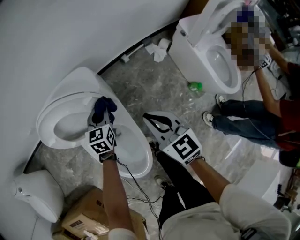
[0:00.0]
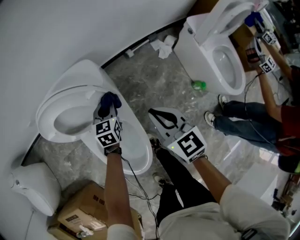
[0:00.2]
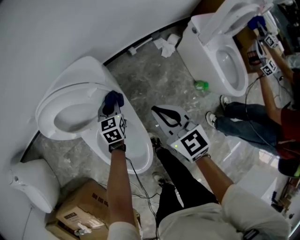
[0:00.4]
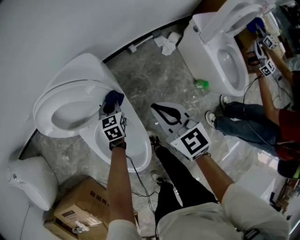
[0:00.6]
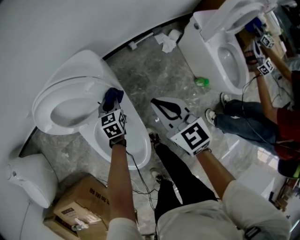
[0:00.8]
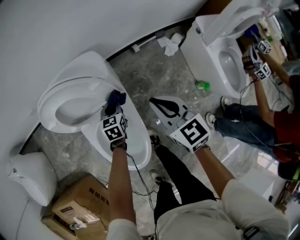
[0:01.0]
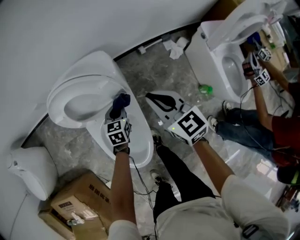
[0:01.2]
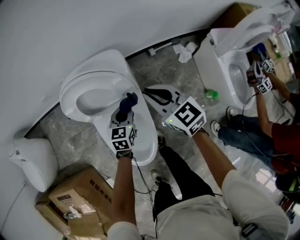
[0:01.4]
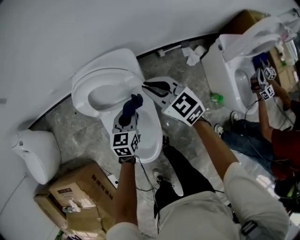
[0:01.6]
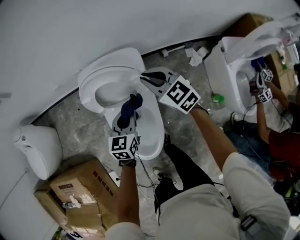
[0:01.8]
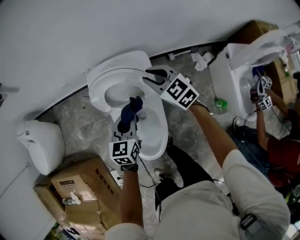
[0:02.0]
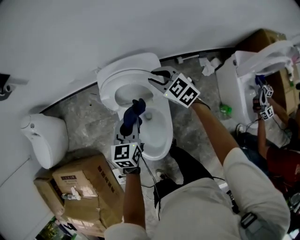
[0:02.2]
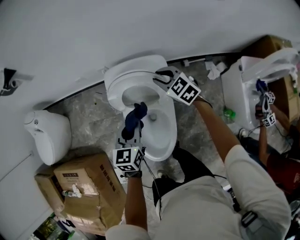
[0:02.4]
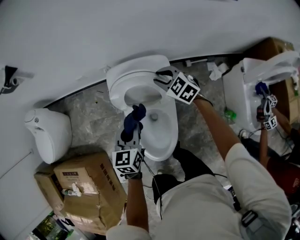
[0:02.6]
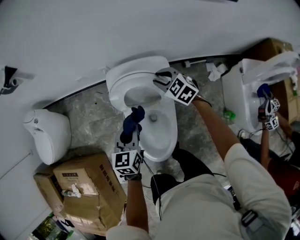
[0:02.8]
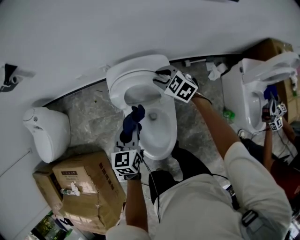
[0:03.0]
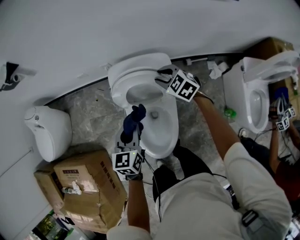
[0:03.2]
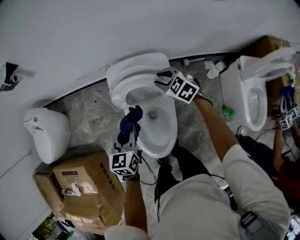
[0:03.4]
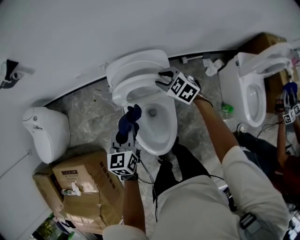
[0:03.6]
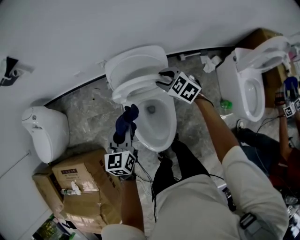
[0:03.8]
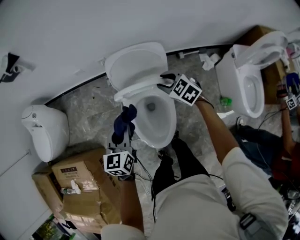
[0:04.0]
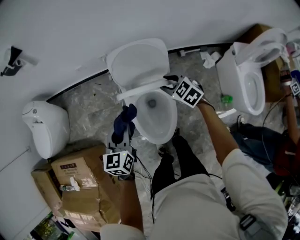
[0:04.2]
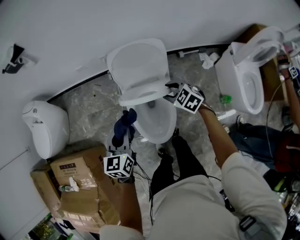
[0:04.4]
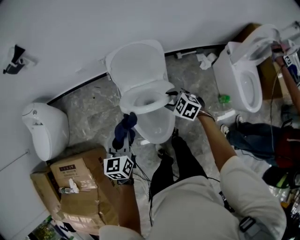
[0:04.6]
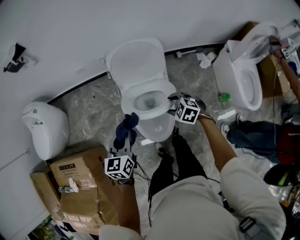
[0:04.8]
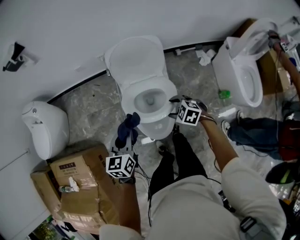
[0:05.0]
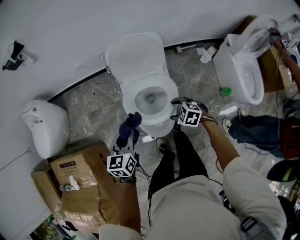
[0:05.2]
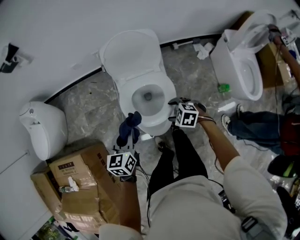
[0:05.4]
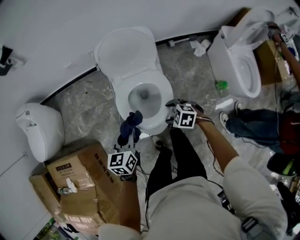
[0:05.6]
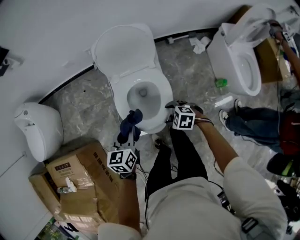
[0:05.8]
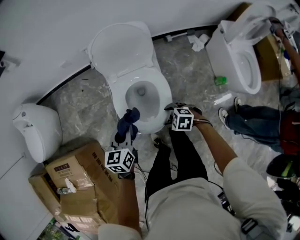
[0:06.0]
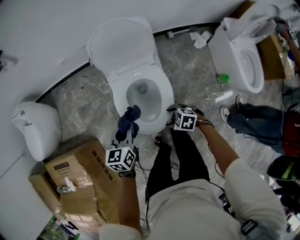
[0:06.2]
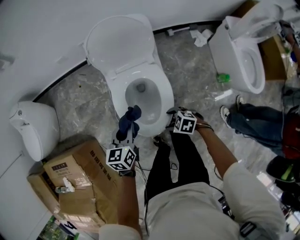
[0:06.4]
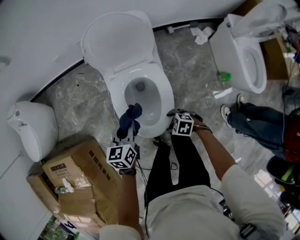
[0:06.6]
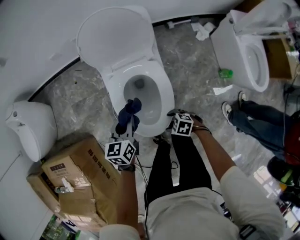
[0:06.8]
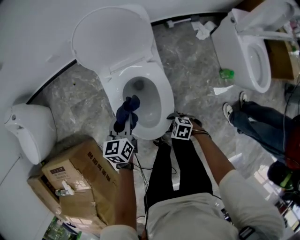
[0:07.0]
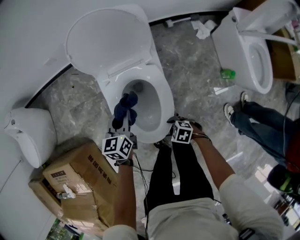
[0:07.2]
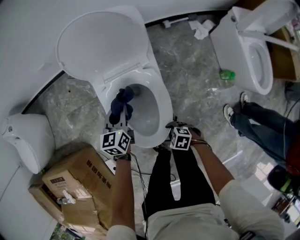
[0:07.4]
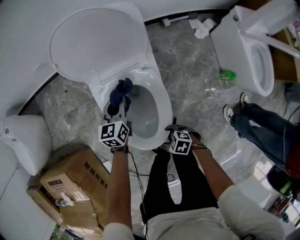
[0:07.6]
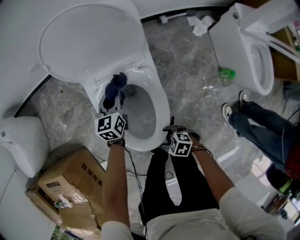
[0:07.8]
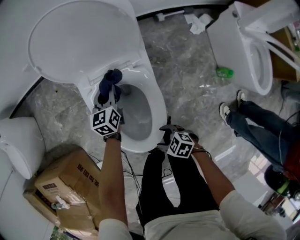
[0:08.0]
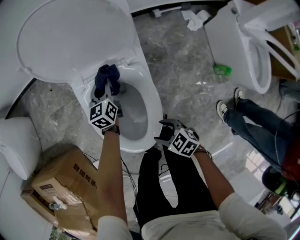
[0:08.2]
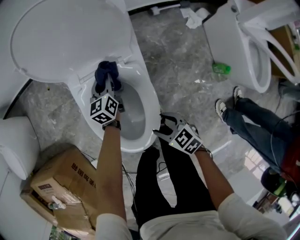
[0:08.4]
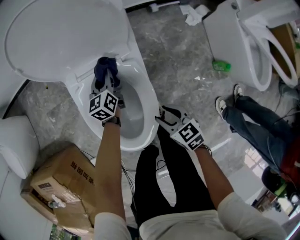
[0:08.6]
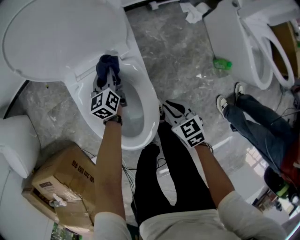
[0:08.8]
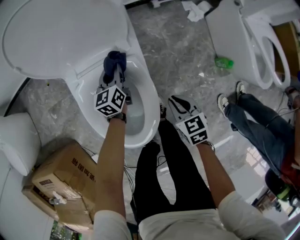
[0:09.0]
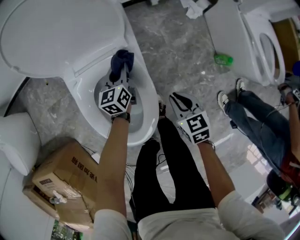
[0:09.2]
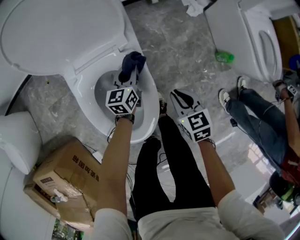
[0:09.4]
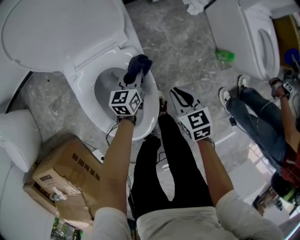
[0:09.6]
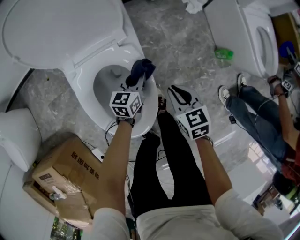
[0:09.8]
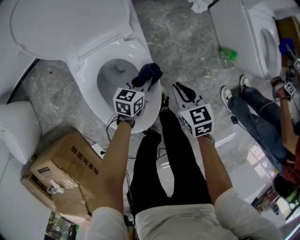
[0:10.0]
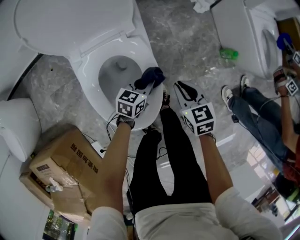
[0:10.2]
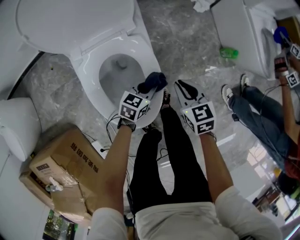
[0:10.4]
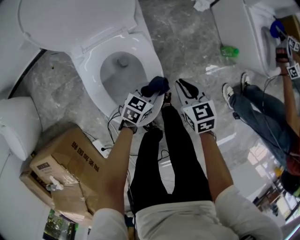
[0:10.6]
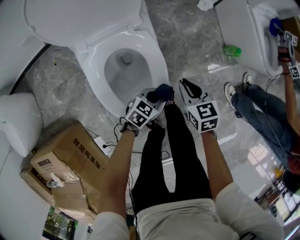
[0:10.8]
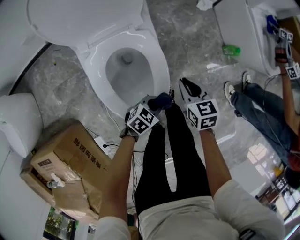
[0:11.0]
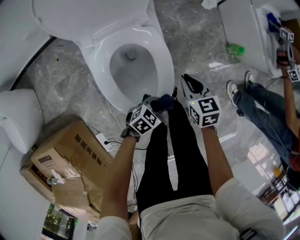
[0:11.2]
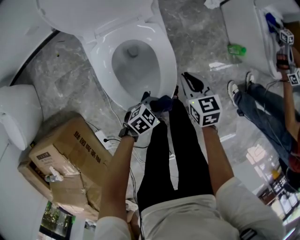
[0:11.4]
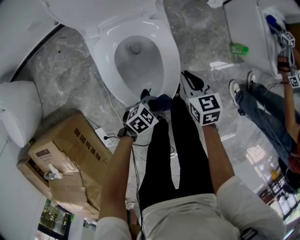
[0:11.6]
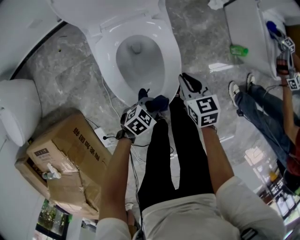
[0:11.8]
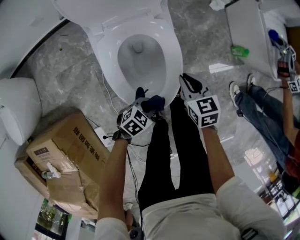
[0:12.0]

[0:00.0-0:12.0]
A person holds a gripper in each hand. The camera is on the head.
0:00.0 to 0:01.6: The left gripper moves backward and upward, approximately 10 cm; the right gripper moves forward and to the left, some 15 cm, and turns by roughly 30 degrees.
0:01.6 to 0:03.0: The right gripper shifts about 10 cm forward and to the left, rotates approximately 30 degrees, and opens up, while the left gripper shifts some 20 cm upward and to the left.
0:03.0 to 0:04.4: The left gripper shifts some 15 cm backward and to the left, while the right gripper shifts some 20 cm backward.
0:04.4 to 0:06.0: The left gripper heads downward and backward, covering approximately 10 cm. Meanwhile the right gripper shifts roughly 25 cm backward, downward and to the left, turns by about 30 degrees, and opens up.
0:06.0 to 0:07.6: The left gripper moves approximately 25 cm. Meanwhile the right gripper is displaced downward by about 15 cm.
0:07.6 to 0:09.0: The right gripper ends up roughly 20 cm from where it was, rotates some 50 degrees, and closes up. Meanwhile the left gripper changes place by roughly 15 cm.
0:09.0 to 0:10.4: The left gripper changes place by roughly 25 cm, and rotates roughly 50 degrees.
0:10.4 to 0:12.0: The right gripper shifts some 5 cm backward, while the left gripper moves backward, about 20 cm, and rotates approximately 30 degrees.

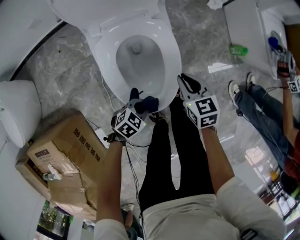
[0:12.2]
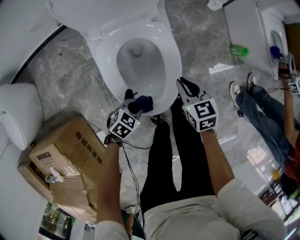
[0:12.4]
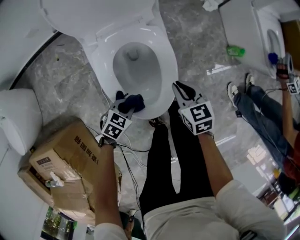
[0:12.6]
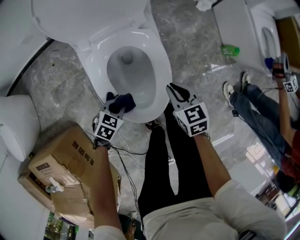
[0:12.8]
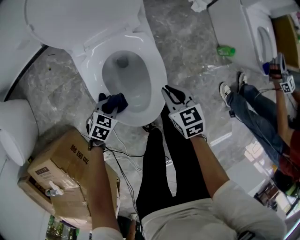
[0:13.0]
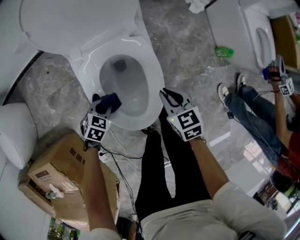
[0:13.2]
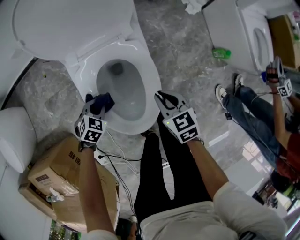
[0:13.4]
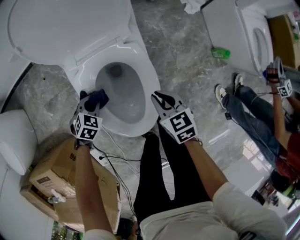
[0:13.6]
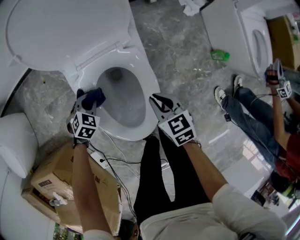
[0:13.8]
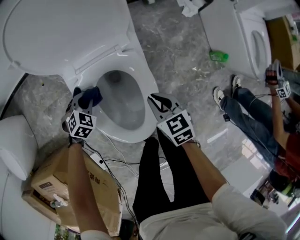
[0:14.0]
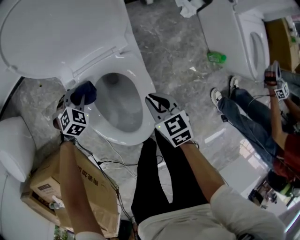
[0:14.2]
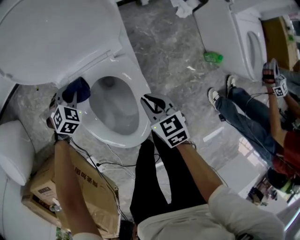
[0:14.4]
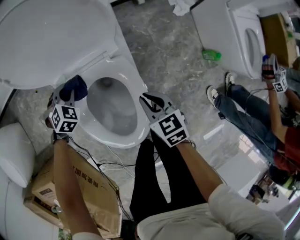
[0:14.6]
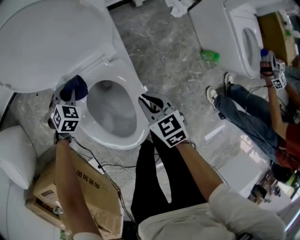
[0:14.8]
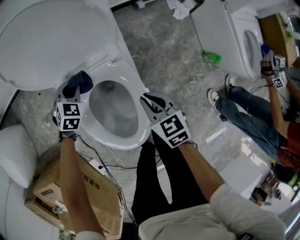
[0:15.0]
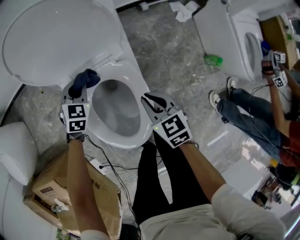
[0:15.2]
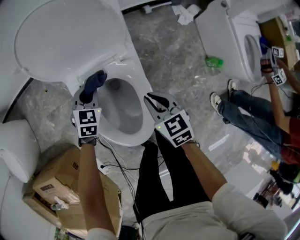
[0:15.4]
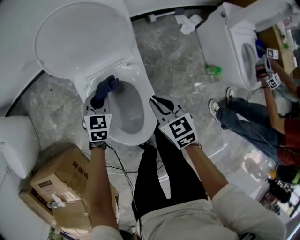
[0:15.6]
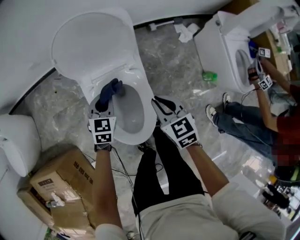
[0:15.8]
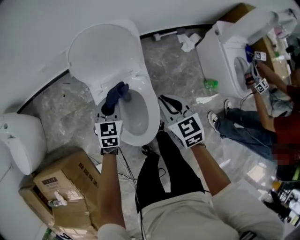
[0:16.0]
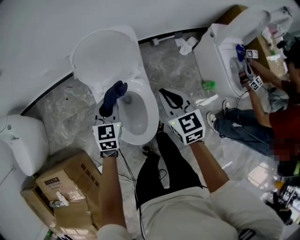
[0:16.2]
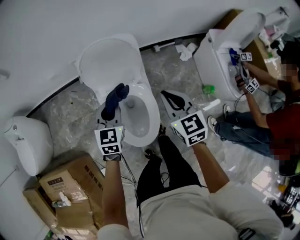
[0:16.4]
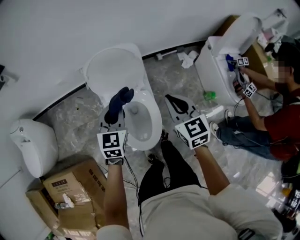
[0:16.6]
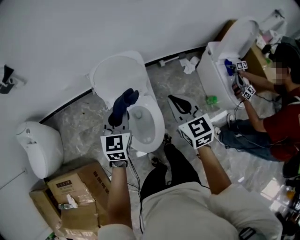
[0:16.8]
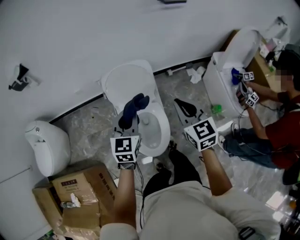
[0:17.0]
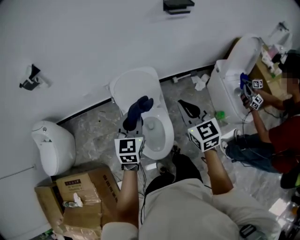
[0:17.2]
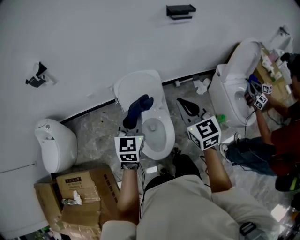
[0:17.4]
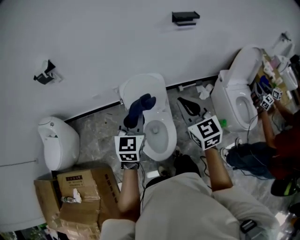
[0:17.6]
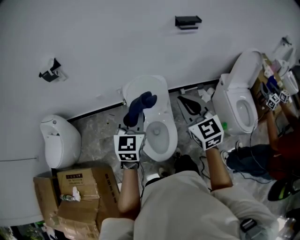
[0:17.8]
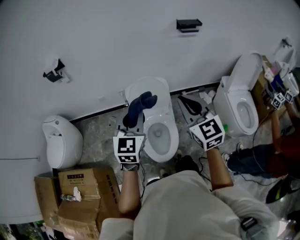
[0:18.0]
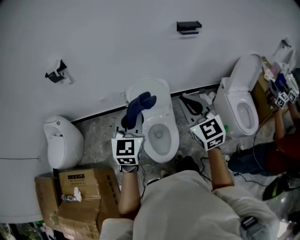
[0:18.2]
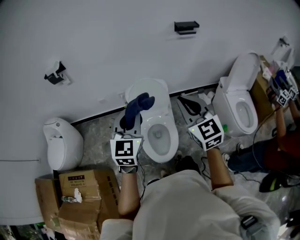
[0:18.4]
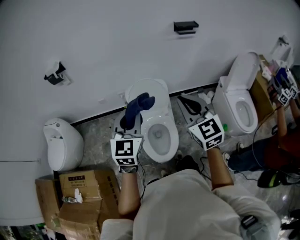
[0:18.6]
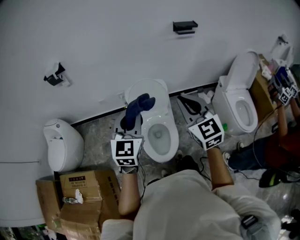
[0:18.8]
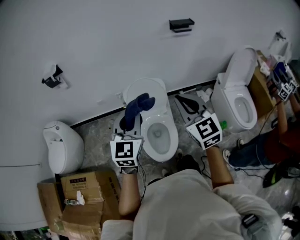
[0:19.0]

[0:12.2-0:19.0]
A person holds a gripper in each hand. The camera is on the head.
0:12.2 to 0:13.6: The left gripper heads to the left and forward, covering approximately 25 cm, and swivels approximately 30 degrees.
0:13.6 to 0:15.0: The right gripper shifts some 5 cm forward. The left gripper moves forward, roughly 15 cm.
0:15.0 to 0:16.2: Both grippers travel together upward, approximately 25 cm. The left gripper rotates approximately 40 degrees.
0:16.2 to 0:17.6: Both grippers move upward, some 30 cm. The right gripper turns by approximately 20 degrees.
0:17.6 to 0:19.0: The left gripper travels upward and backward by roughly 10 cm; the right gripper is displaced upward by about 5 cm.

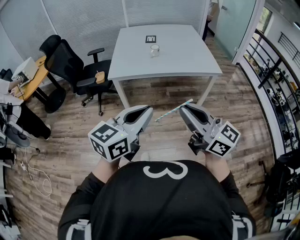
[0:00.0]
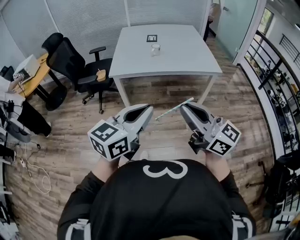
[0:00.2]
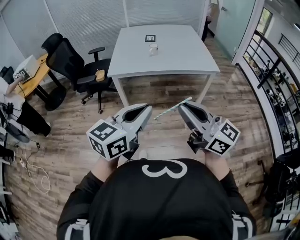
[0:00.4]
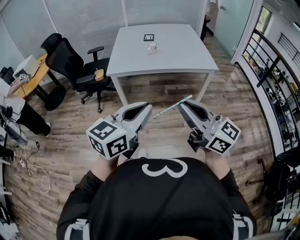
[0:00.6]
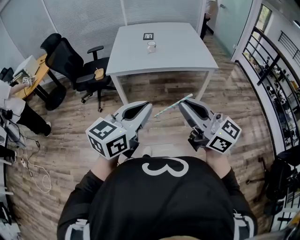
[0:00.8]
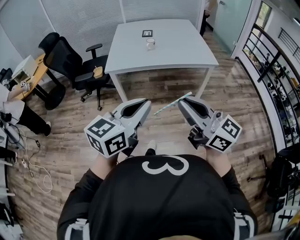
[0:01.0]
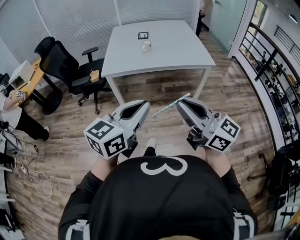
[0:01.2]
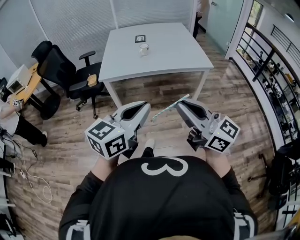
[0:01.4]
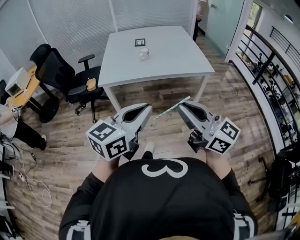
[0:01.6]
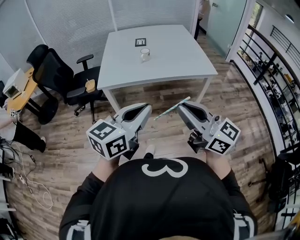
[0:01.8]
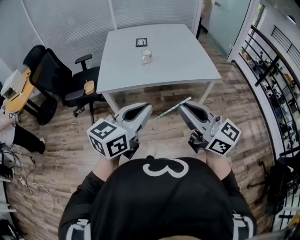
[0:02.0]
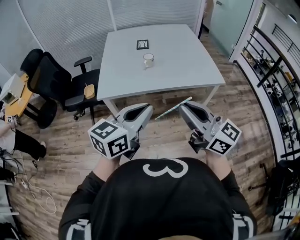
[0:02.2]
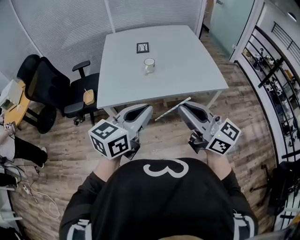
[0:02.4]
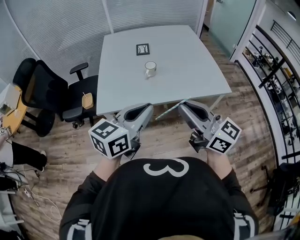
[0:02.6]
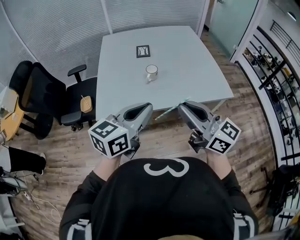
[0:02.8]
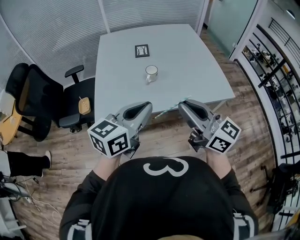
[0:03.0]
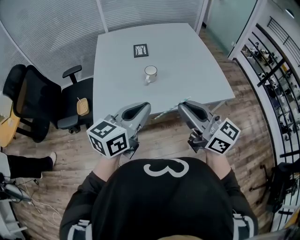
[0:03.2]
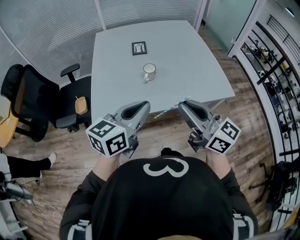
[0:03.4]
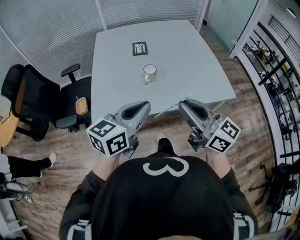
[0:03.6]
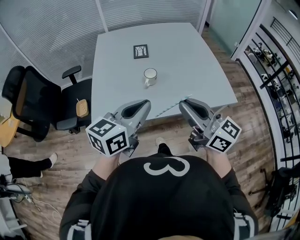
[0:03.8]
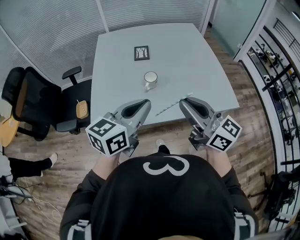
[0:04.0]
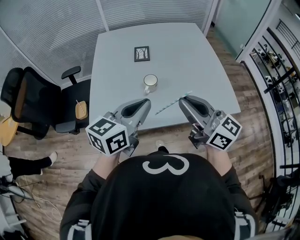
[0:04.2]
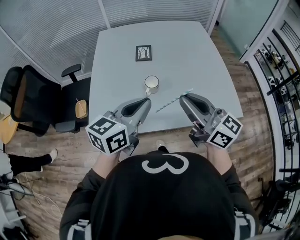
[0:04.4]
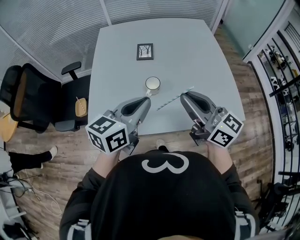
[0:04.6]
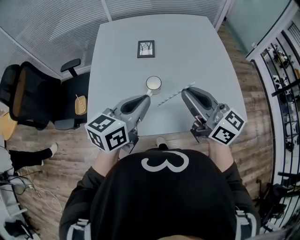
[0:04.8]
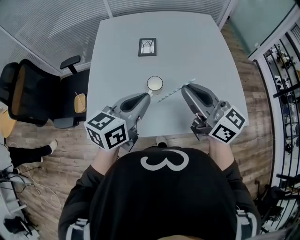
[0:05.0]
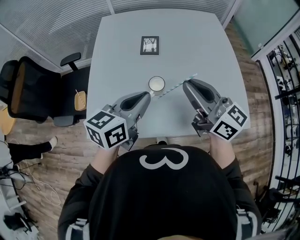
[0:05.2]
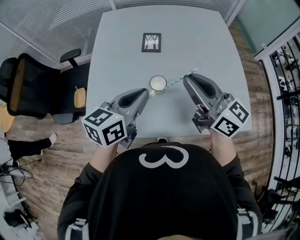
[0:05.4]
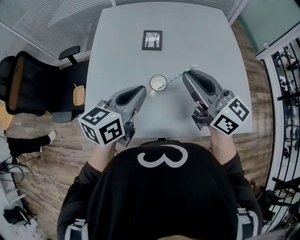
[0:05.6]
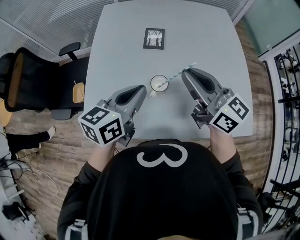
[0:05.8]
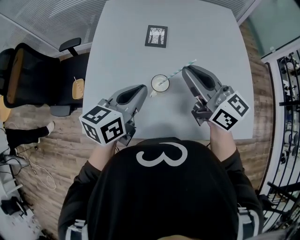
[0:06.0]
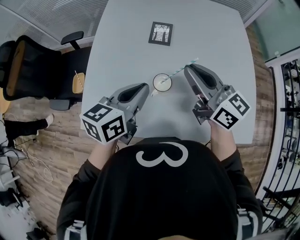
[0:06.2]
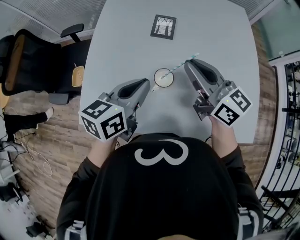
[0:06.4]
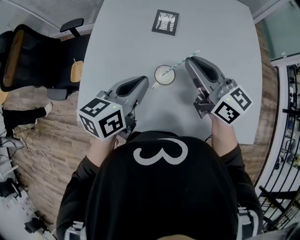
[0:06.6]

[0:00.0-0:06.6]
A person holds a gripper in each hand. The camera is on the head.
0:00.0 to 0:01.6: The left gripper moves about 5 cm.
0:01.6 to 0:03.2: The grippers both shift forward by about 40 cm.
0:03.2 to 0:05.0: Both grippers travel together forward, roughly 25 cm.
0:05.0 to 0:06.6: Both grippers move forward and downward, about 15 cm.
